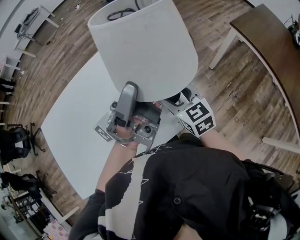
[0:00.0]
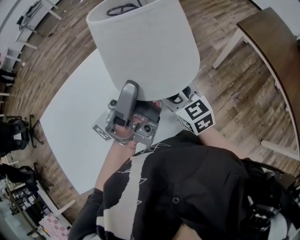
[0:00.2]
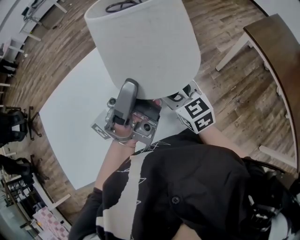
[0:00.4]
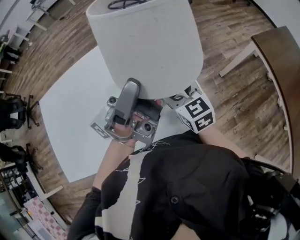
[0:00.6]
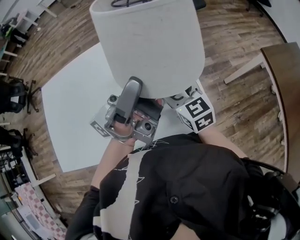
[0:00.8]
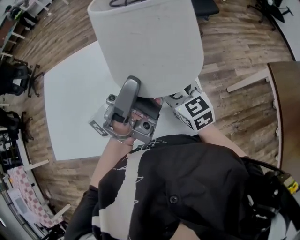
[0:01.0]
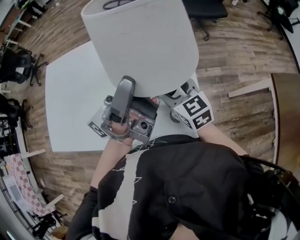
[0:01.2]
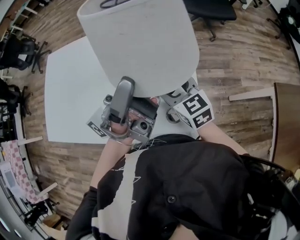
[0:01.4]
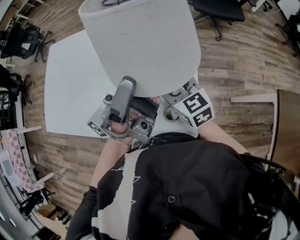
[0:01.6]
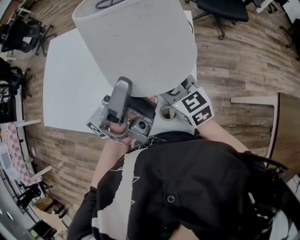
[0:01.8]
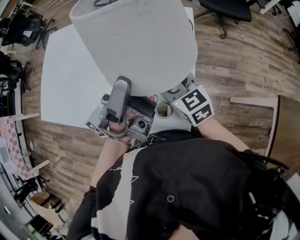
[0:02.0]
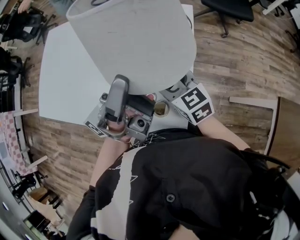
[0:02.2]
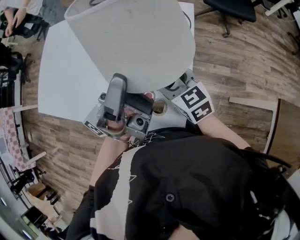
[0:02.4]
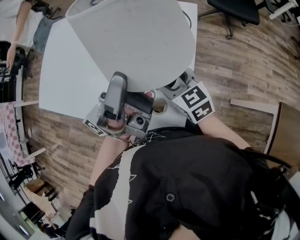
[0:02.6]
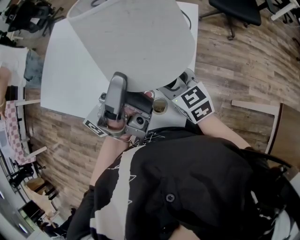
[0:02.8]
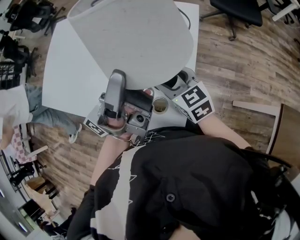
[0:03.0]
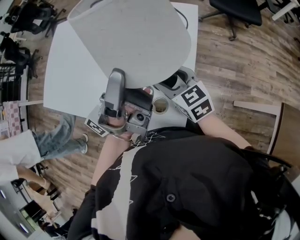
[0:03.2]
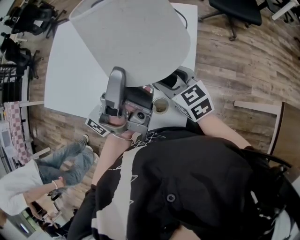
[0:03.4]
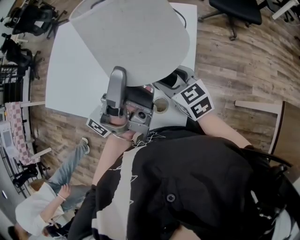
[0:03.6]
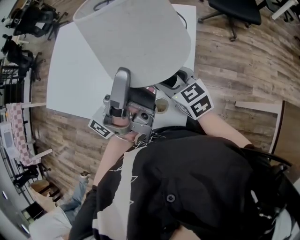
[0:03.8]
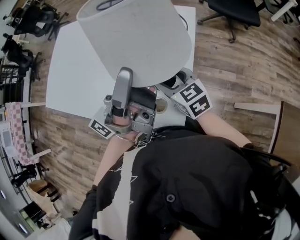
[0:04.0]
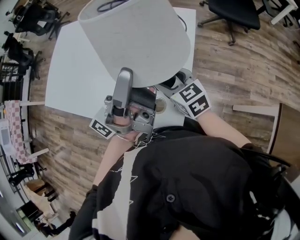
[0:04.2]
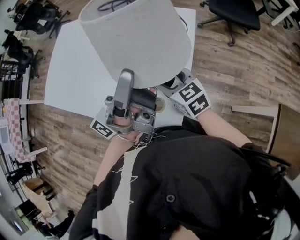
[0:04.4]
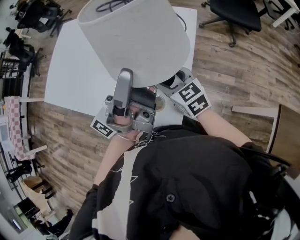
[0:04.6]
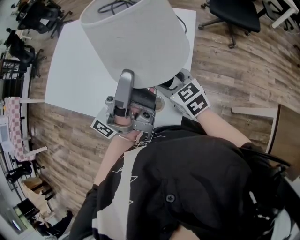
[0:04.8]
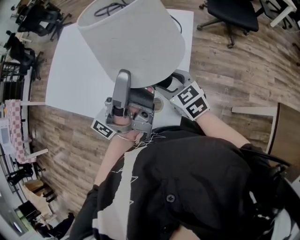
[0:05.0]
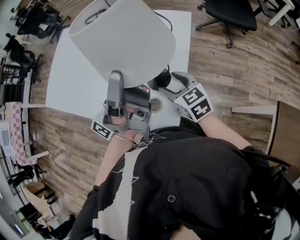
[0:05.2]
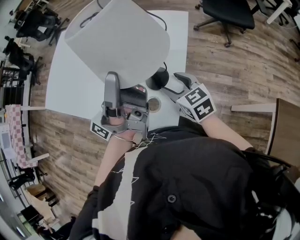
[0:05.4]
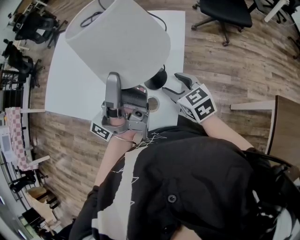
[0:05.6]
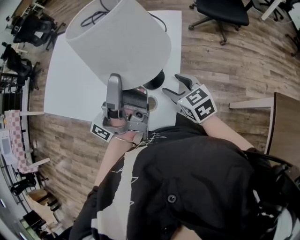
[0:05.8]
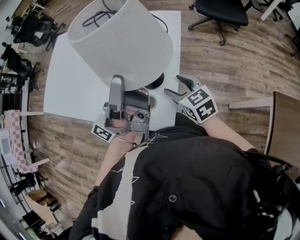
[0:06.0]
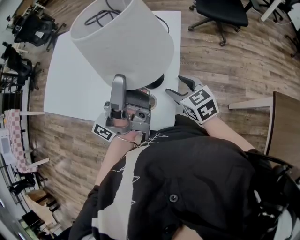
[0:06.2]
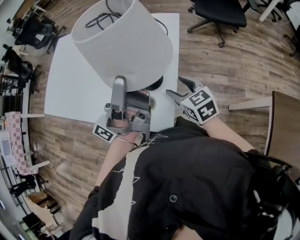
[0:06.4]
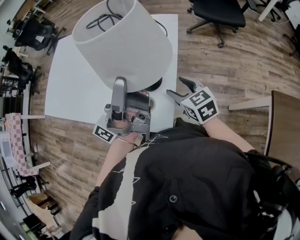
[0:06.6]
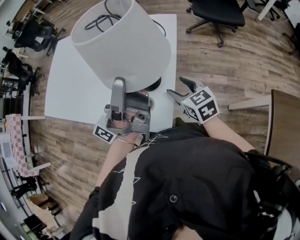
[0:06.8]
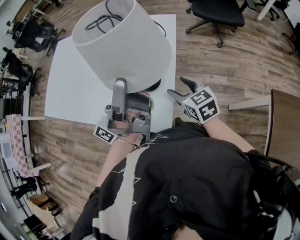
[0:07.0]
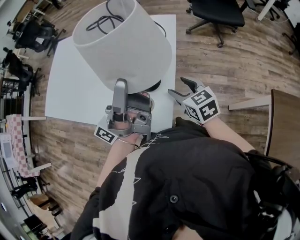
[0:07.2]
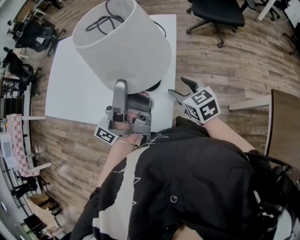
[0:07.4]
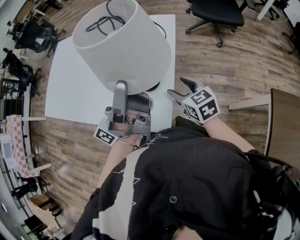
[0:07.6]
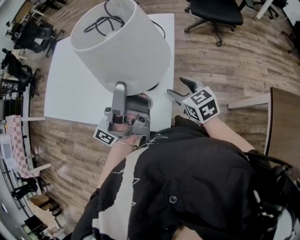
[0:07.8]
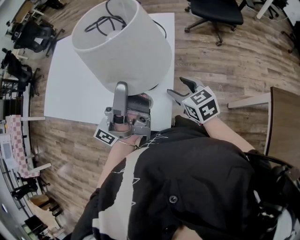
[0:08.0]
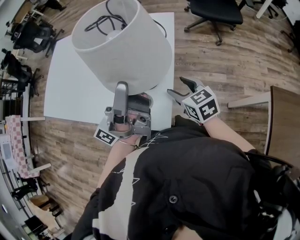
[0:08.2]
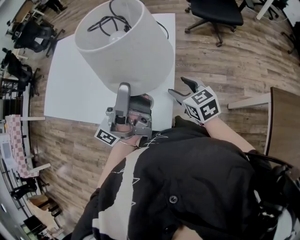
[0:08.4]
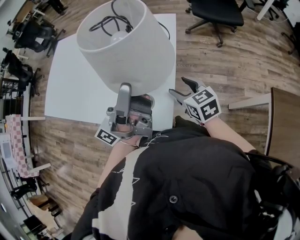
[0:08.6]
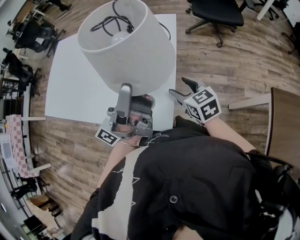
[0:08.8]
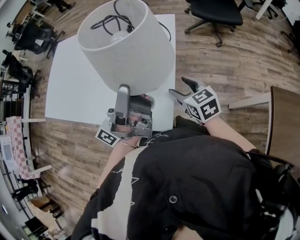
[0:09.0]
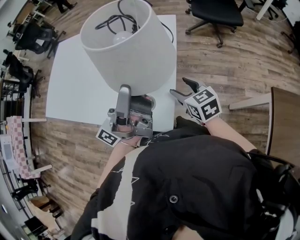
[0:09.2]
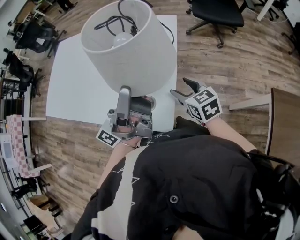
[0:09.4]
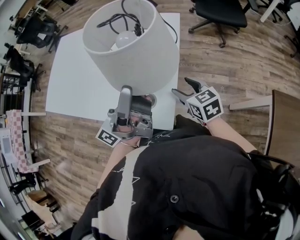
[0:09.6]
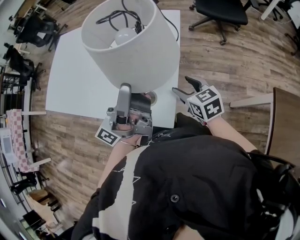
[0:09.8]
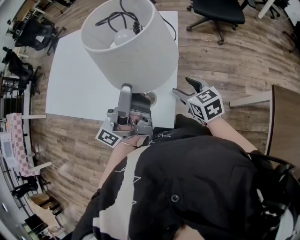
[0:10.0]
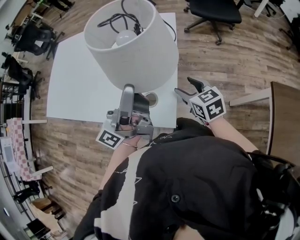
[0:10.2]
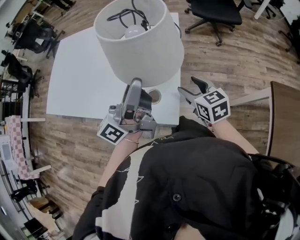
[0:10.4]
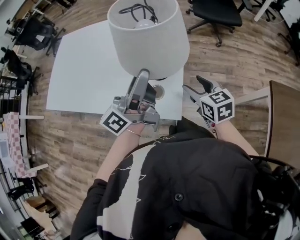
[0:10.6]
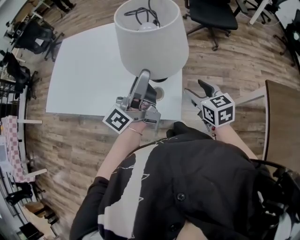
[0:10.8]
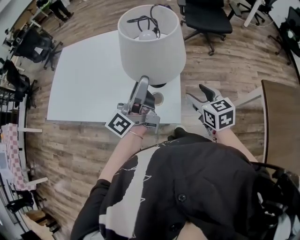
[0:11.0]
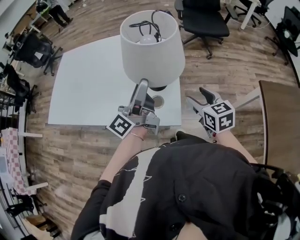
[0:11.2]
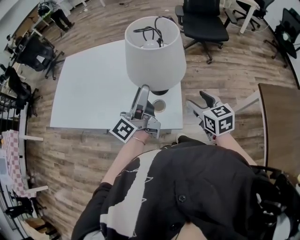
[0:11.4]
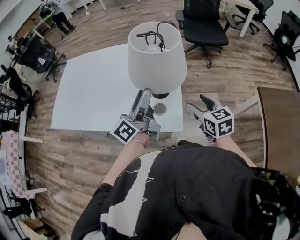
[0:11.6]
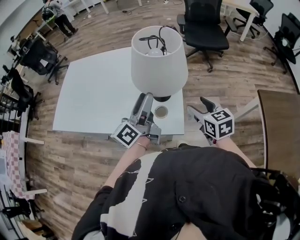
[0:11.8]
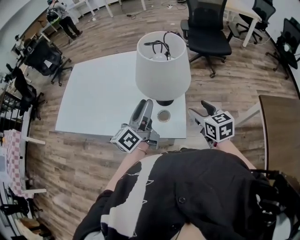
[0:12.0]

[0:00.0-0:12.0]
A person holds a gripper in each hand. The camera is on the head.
0:00.0 to 0:01.6: The left gripper changes its angle by about 40 degrees. The right gripper ends up approximately 10 cm from where it was, and changes its angle by about 40 degrees.
0:01.6 to 0:03.0: The right gripper ends up roughly 5 cm from where it was.
0:03.0 to 0:04.4: There are only small adjustments of the grippers.
0:04.4 to 0:06.0: The right gripper travels to the right and backward by roughly 10 cm.
0:06.0 to 0:07.6: The grippers move only a little.
0:07.6 to 0:09.0: Neither gripper changes place.
0:09.0 to 0:10.4: There are only small adjustments of the grippers.
0:10.4 to 0:12.0: The left gripper travels to the left by about 5 cm, and changes its angle by roughly 20 degrees, while the right gripper travels upward by roughly 5 cm.

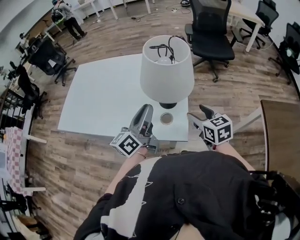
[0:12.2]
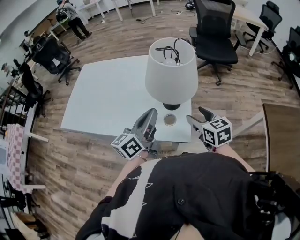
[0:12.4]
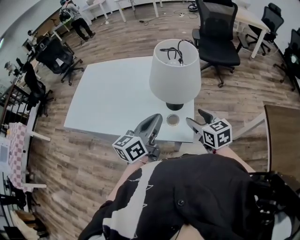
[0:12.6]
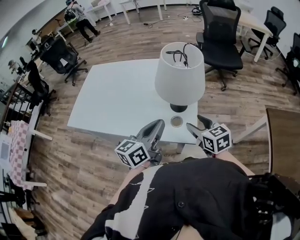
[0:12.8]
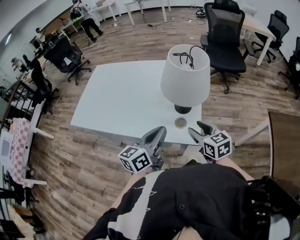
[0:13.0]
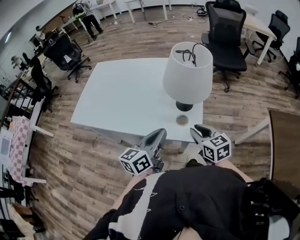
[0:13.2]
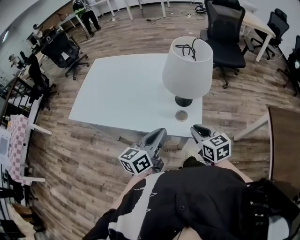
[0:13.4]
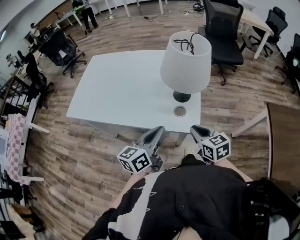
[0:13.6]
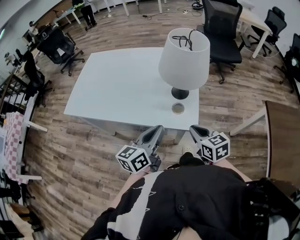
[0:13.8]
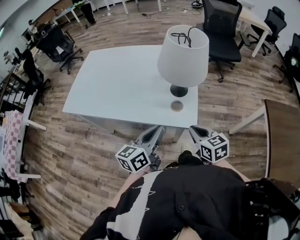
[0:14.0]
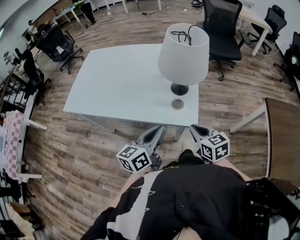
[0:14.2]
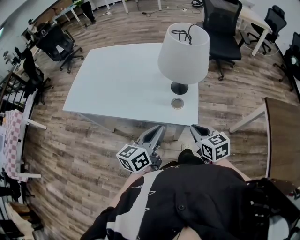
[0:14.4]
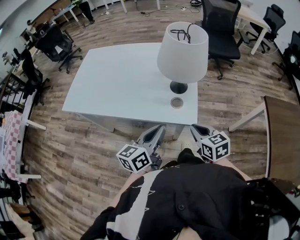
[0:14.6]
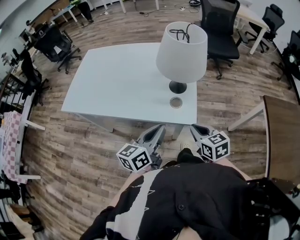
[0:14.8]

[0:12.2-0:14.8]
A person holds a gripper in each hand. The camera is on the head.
0:12.2 to 0:13.4: The left gripper shifts some 10 cm backward. The right gripper travels to the left and backward by about 10 cm, and closes up.
0:13.4 to 0:14.8: The right gripper shifts approximately 5 cm backward.

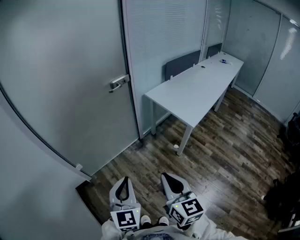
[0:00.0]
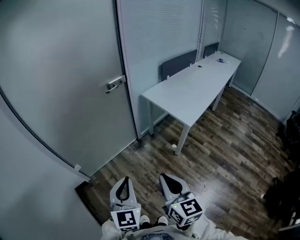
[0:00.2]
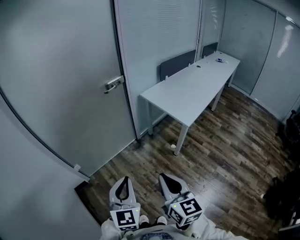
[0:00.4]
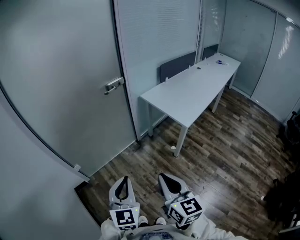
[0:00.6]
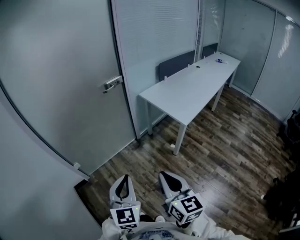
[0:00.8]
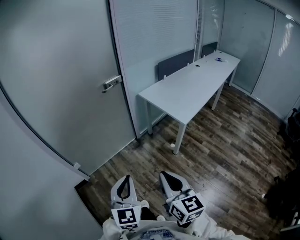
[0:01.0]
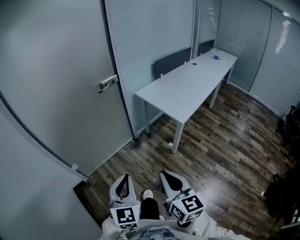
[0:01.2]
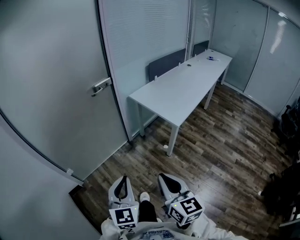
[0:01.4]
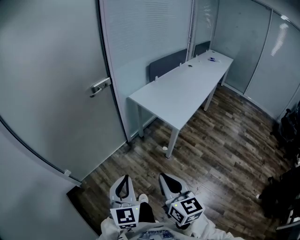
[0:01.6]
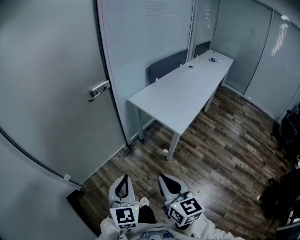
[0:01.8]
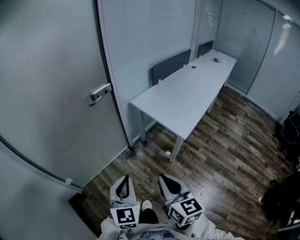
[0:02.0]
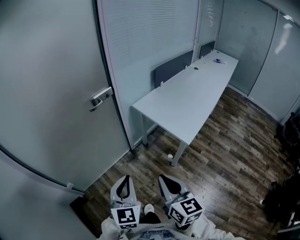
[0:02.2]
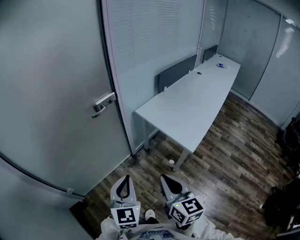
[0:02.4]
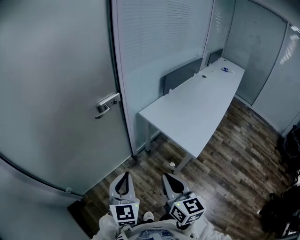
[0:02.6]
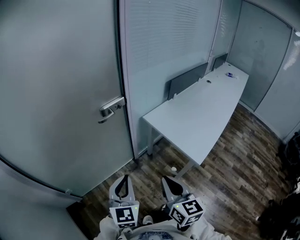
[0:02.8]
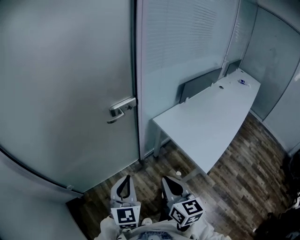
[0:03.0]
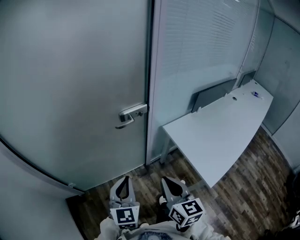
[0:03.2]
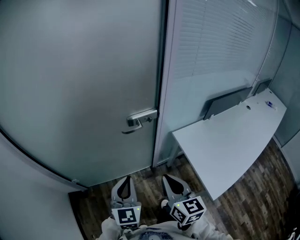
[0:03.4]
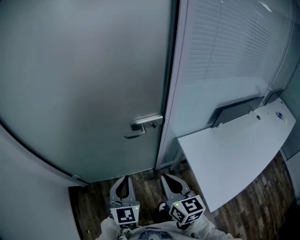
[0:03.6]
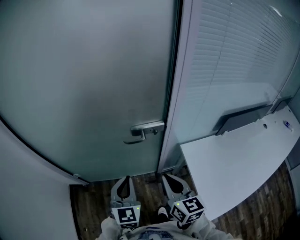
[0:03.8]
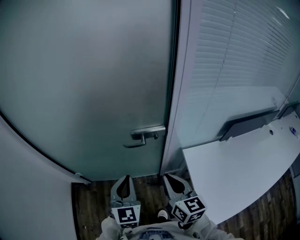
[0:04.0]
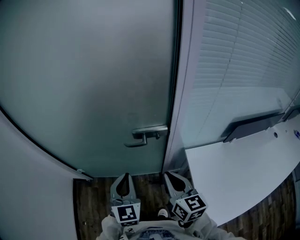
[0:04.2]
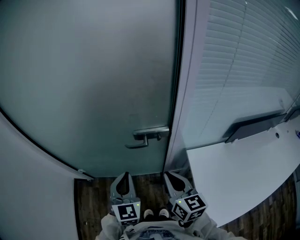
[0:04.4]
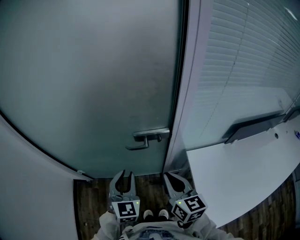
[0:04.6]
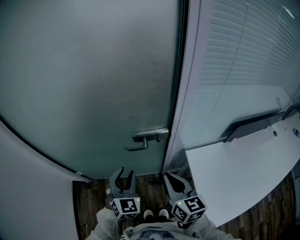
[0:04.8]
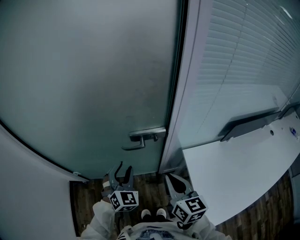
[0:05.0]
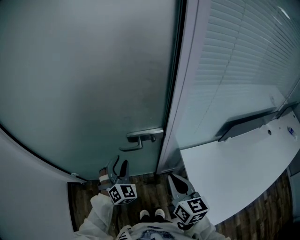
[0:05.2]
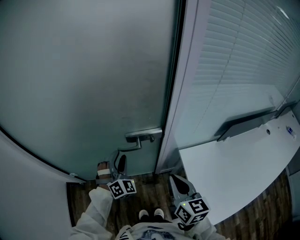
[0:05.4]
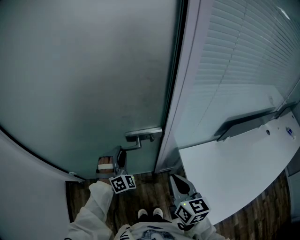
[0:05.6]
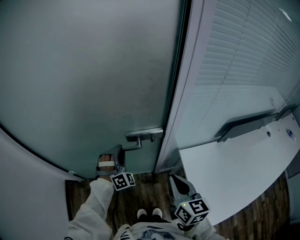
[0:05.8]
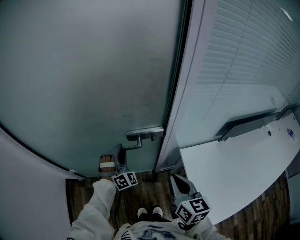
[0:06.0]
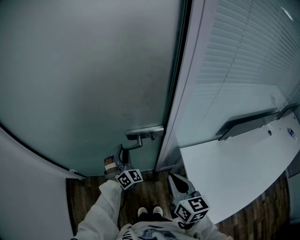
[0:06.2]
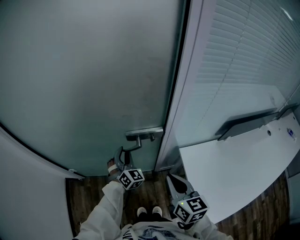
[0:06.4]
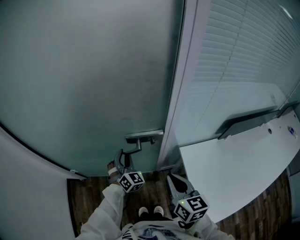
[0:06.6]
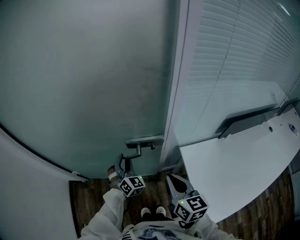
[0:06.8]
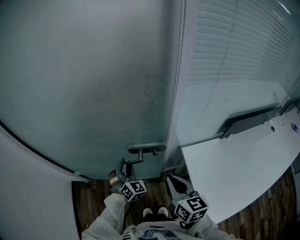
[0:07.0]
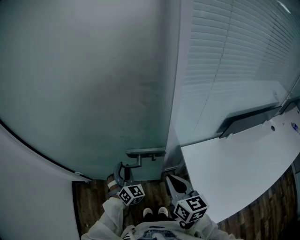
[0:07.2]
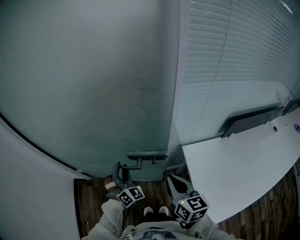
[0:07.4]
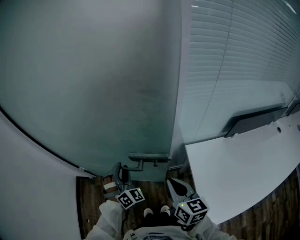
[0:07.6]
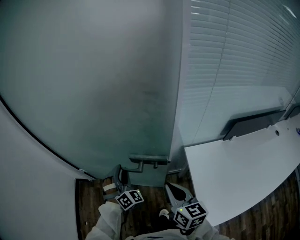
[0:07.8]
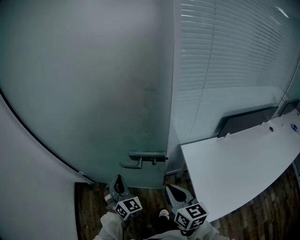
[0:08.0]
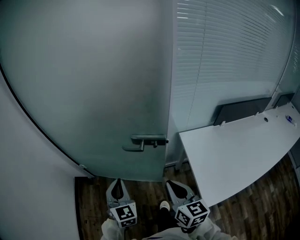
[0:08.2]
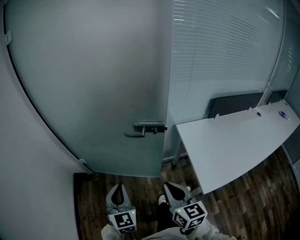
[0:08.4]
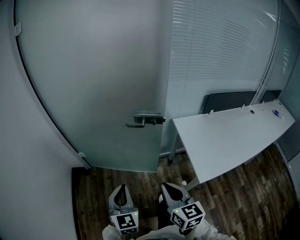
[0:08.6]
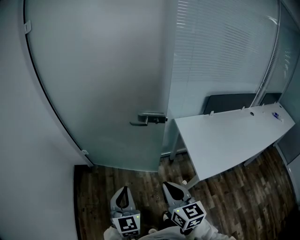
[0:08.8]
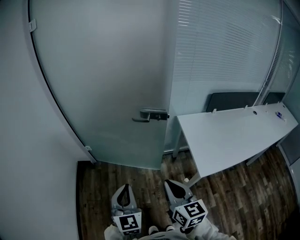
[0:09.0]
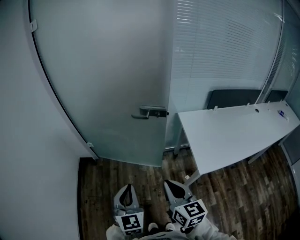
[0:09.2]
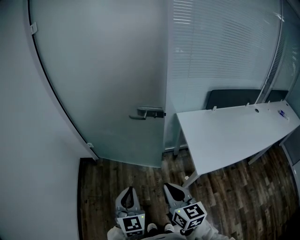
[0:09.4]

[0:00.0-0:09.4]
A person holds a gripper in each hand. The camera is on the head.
0:00.0 to 0:01.6: Both grippers travel together to the right, some 10 cm.
0:01.6 to 0:03.2: Both grippers move forward, roughly 35 cm.
0:03.2 to 0:04.8: The left gripper ends up some 20 cm from where it was, rotates about 30 degrees, and opens; the right gripper ends up about 20 cm from where it was, and swivels approximately 20 degrees.
0:04.8 to 0:06.2: The left gripper heads forward and downward, covering approximately 15 cm, and rotates approximately 30 degrees.
0:06.2 to 0:07.8: The left gripper travels backward and upward by approximately 15 cm. The right gripper travels backward by about 5 cm.
0:07.8 to 0:09.4: The grippers both shift backward by roughly 40 cm. The left gripper rotates around the line of its fingers by roughly 50 degrees, counterclockwise from behind, and closes up.
